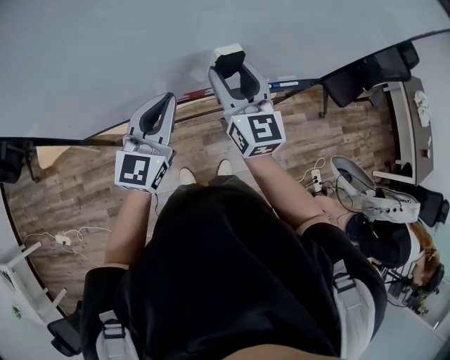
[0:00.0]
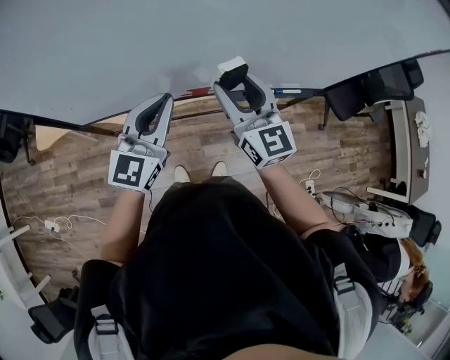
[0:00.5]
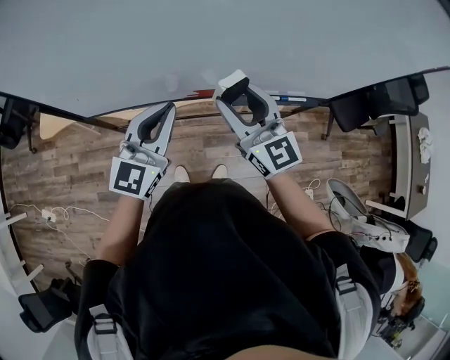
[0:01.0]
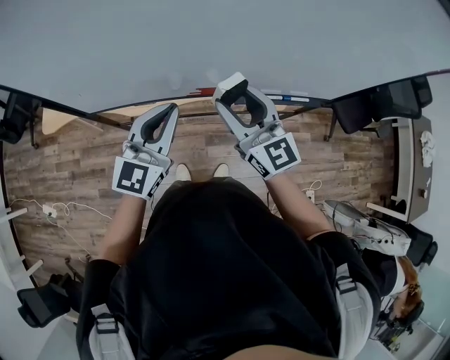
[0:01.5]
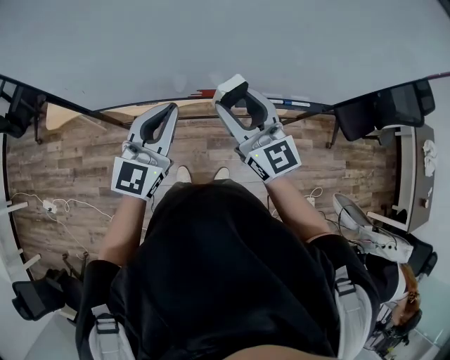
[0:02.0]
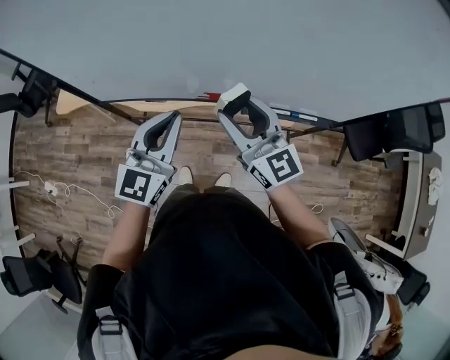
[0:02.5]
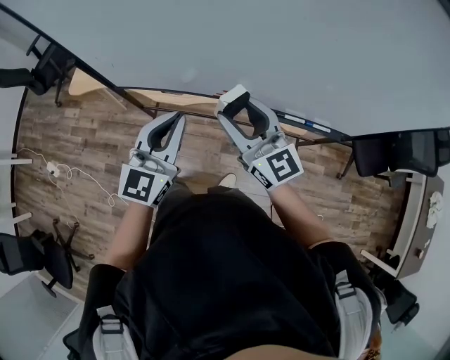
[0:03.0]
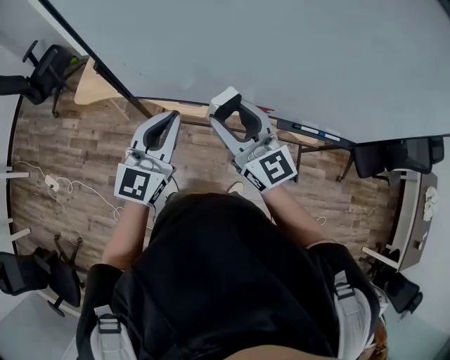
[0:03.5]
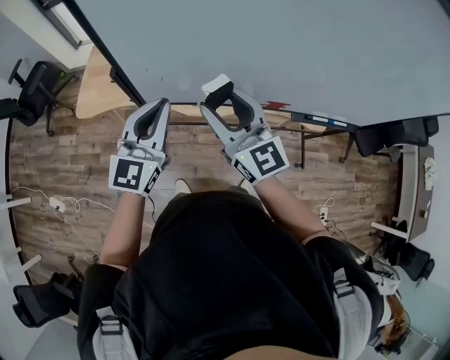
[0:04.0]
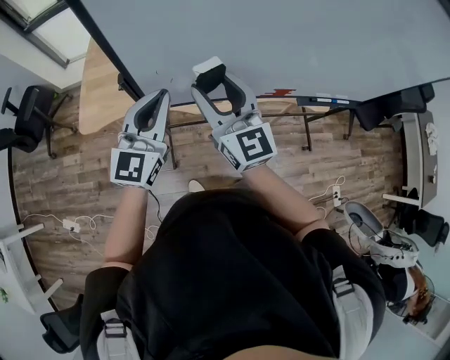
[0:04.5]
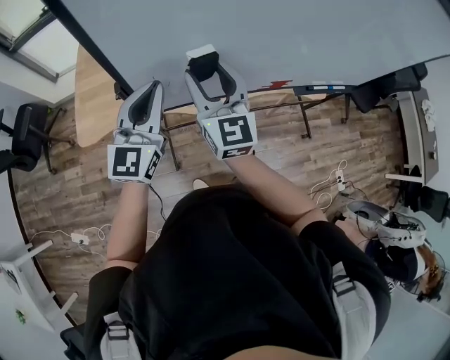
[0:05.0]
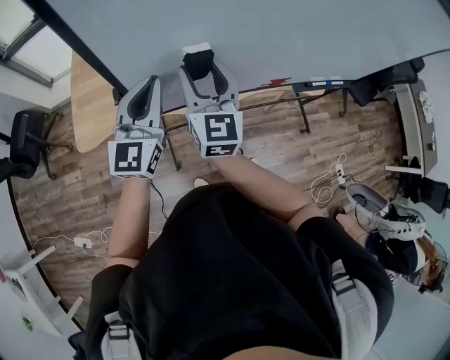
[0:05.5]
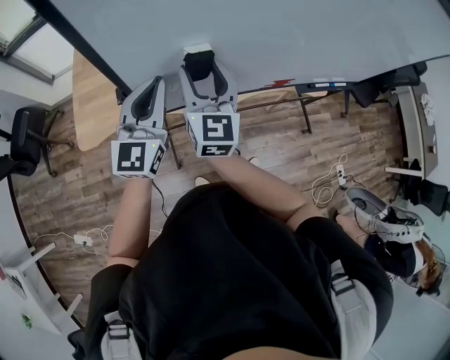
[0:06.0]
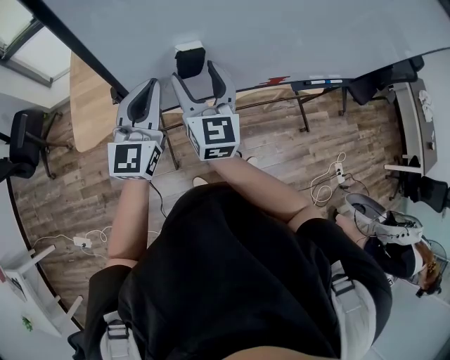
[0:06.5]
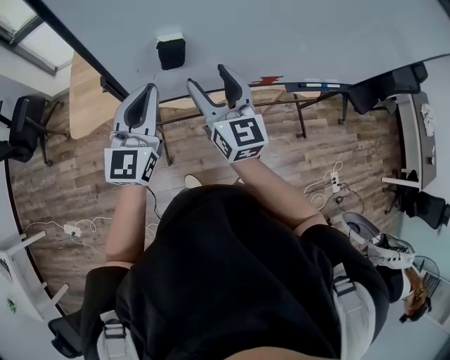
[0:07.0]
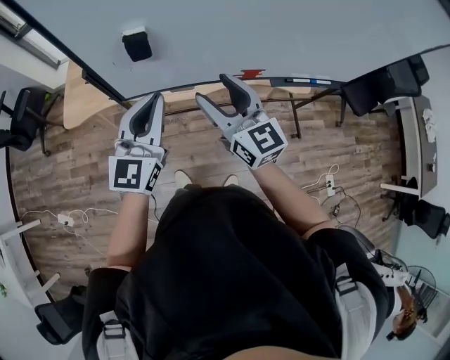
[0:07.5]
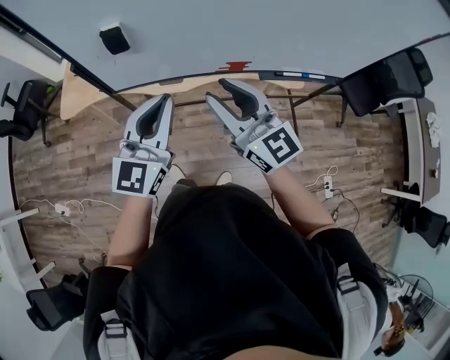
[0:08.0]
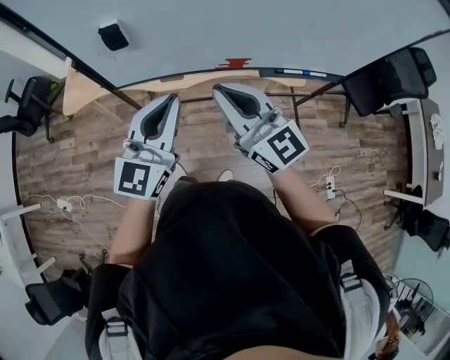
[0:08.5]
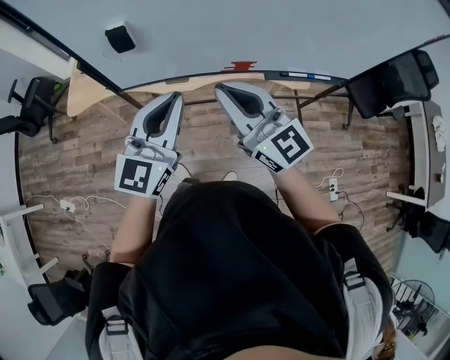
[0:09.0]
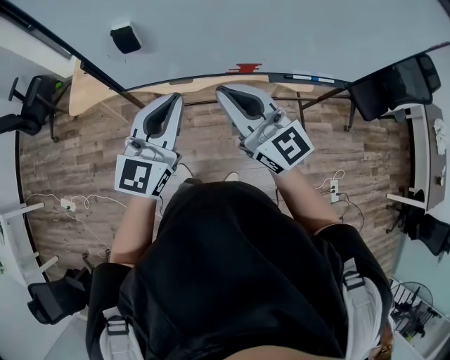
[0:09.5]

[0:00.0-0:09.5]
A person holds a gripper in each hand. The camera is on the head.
0:00.0 to 0:02.0: Both grippers travel together backward, about 5 cm. The right gripper turns by approximately 30 degrees.
0:02.0 to 0:04.0: The grippers both shift to the left by roughly 30 cm.
0:04.0 to 0:05.5: Both grippers move forward and to the left, about 10 cm. The right gripper changes its angle by roughly 40 degrees.
0:05.5 to 0:07.5: Both grippers move to the right and backward, about 20 cm. The right gripper turns by some 30 degrees.
0:07.5 to 0:09.5: The left gripper is displaced to the right and backward by roughly 10 cm. The right gripper is displaced backward and to the right by about 10 cm, and closes.

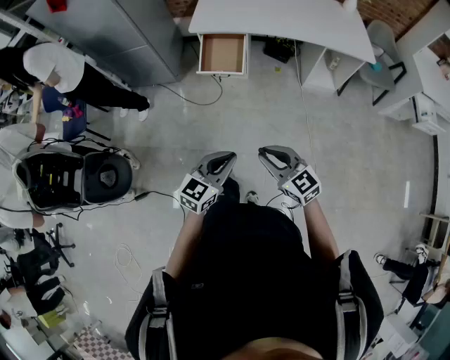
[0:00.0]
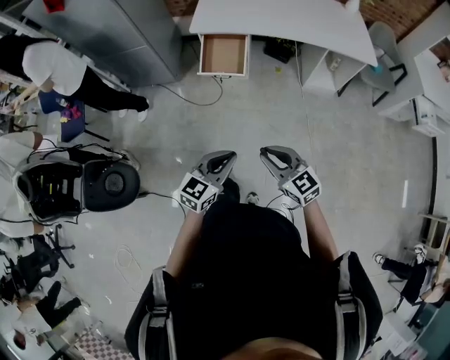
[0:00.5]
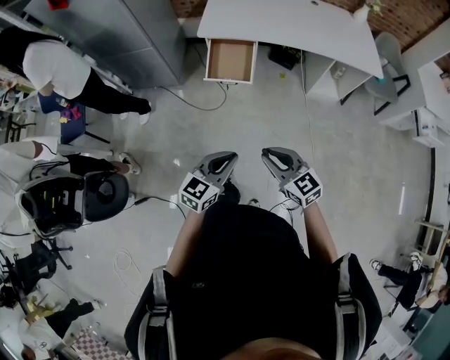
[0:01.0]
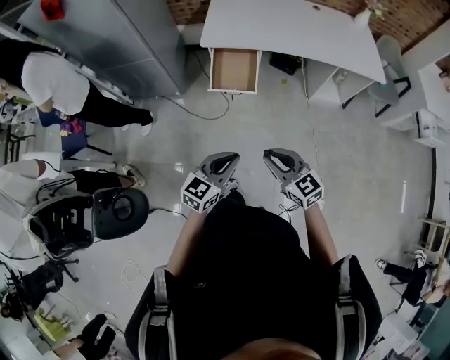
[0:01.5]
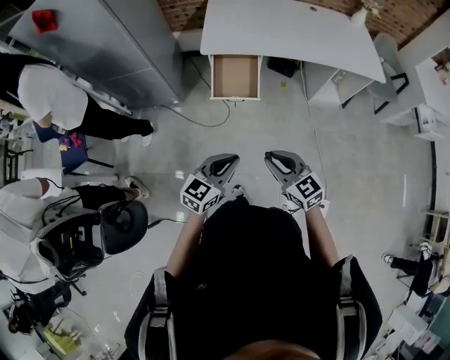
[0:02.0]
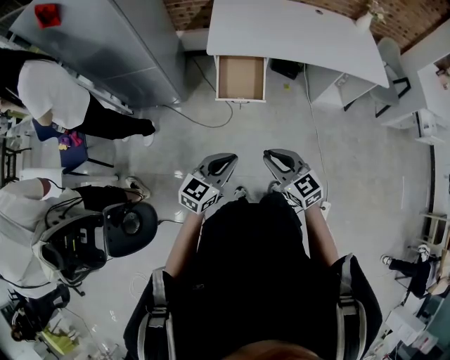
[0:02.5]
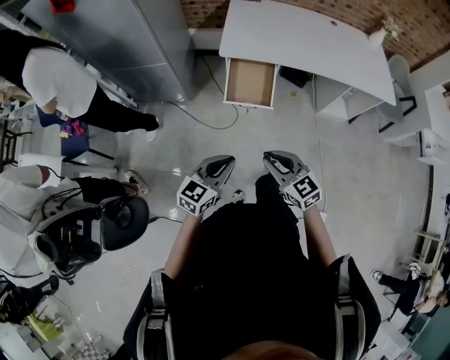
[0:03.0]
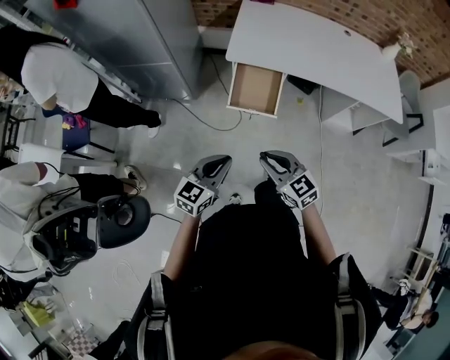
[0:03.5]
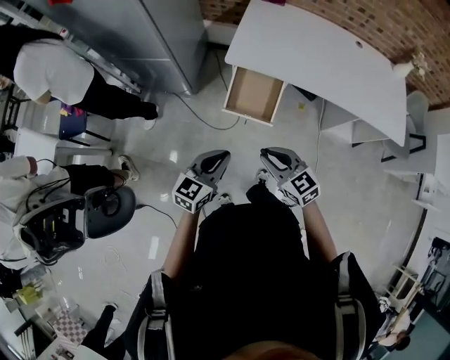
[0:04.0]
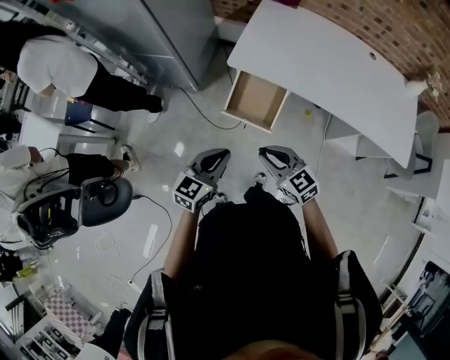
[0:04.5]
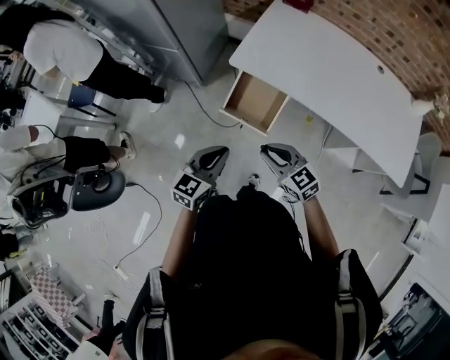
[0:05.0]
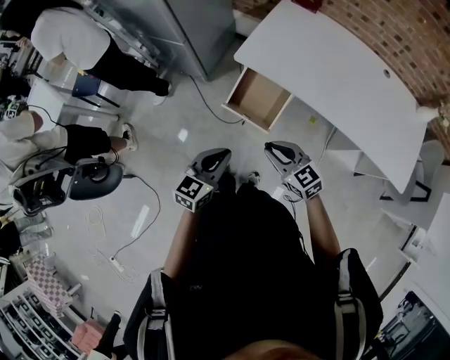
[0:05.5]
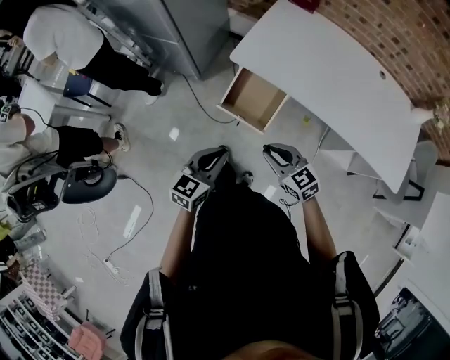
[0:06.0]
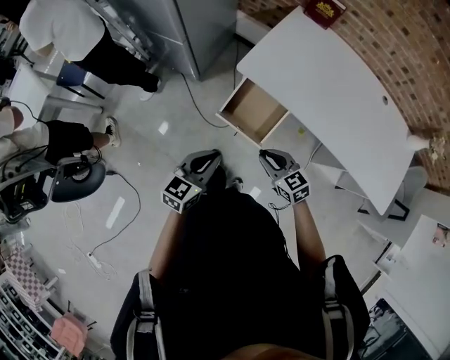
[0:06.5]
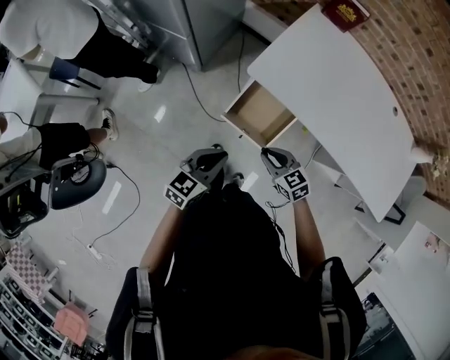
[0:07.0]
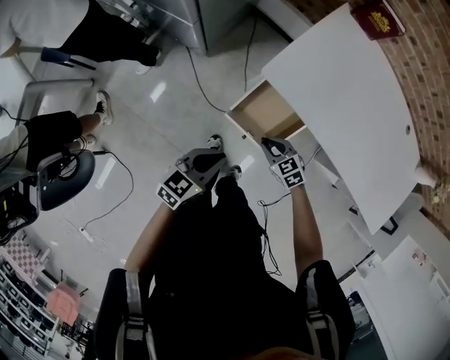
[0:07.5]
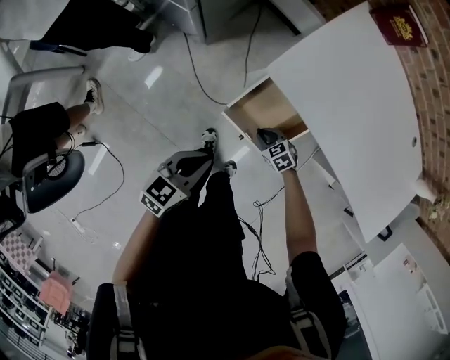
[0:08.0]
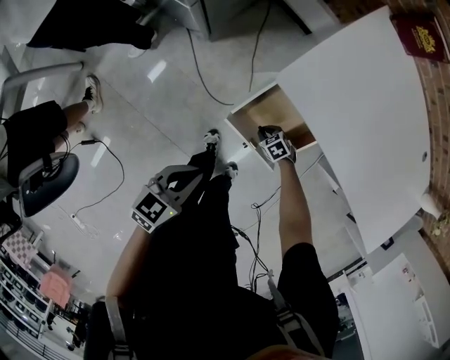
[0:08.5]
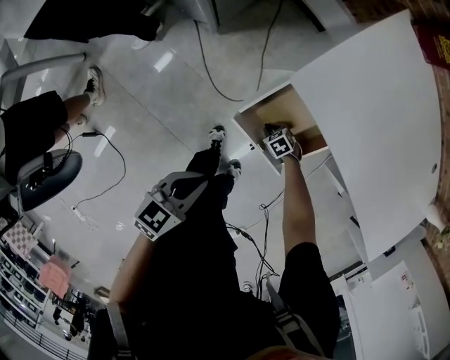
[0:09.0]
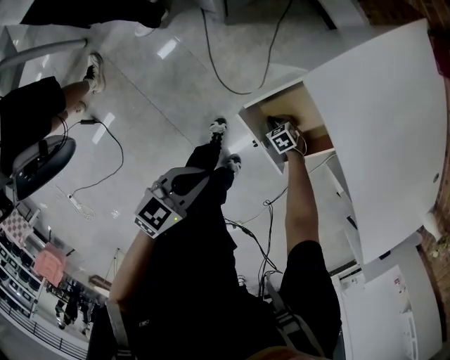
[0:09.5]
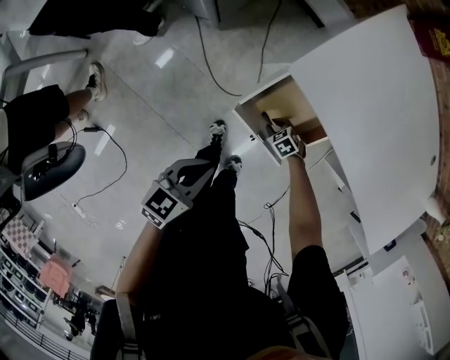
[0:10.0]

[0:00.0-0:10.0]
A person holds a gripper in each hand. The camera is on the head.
0:00.0 to 0:02.0: Both grippers travel together forward and to the left, roughly 20 cm.
0:02.0 to 0:04.0: Both grippers move forward, roughly 15 cm.
0:04.0 to 0:06.0: The left gripper is displaced to the right by some 10 cm. The right gripper heads to the right and forward, covering roughly 15 cm.
0:06.0 to 0:08.0: The left gripper moves forward, downward and to the left, some 25 cm. The right gripper is displaced downward and forward by about 40 cm, and points its fingers about 30 degrees further downward.
0:08.0 to 0:10.0: The right gripper goes about 15 cm downward; the left gripper shifts some 5 cm downward.

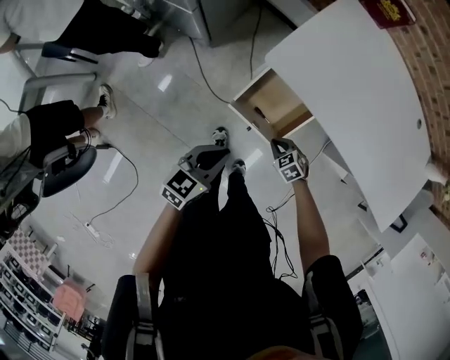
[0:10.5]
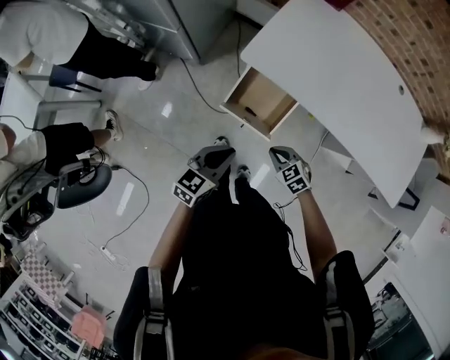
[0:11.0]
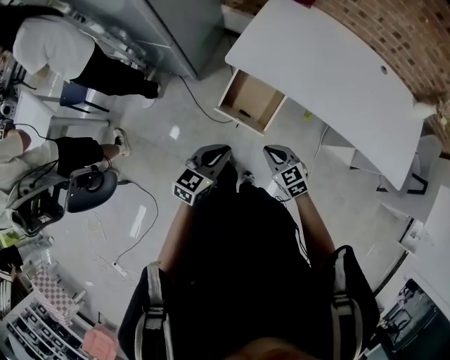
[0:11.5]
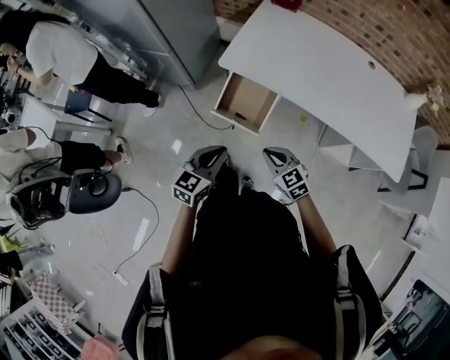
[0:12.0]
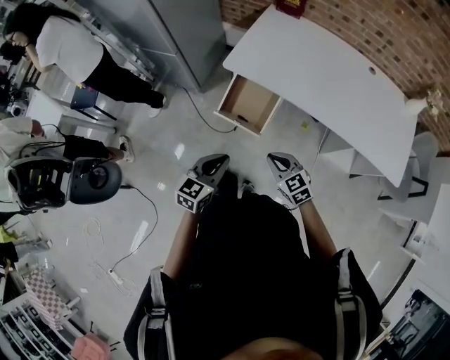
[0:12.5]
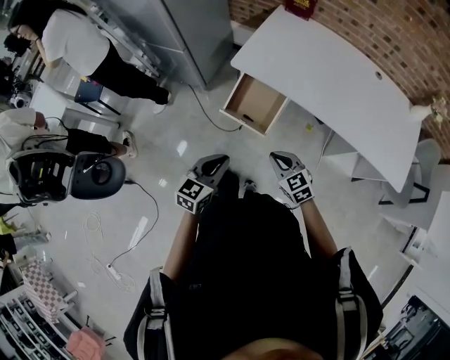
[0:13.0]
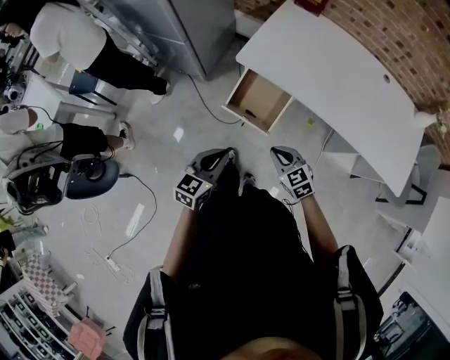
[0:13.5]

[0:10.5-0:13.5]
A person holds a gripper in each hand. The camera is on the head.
0:10.5 to 0:12.0: The left gripper shifts roughly 20 cm upward, backward and to the right; the right gripper is displaced upward and backward by roughly 30 cm, and tilts its fingers approximately 30 degrees upward.
0:12.0 to 0:13.5: There are only small adjustments of the grippers.

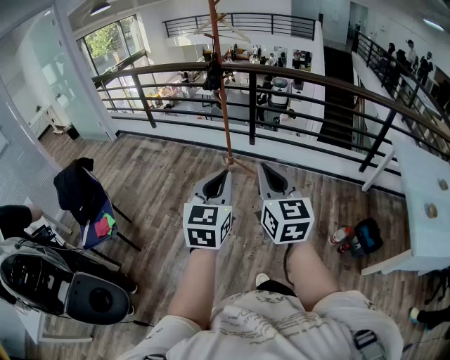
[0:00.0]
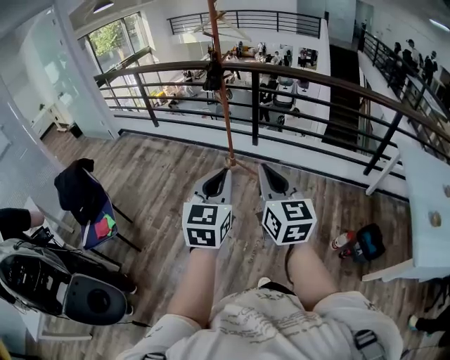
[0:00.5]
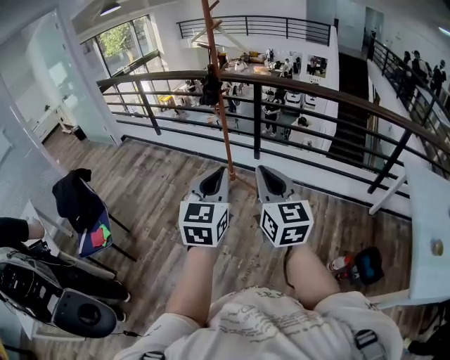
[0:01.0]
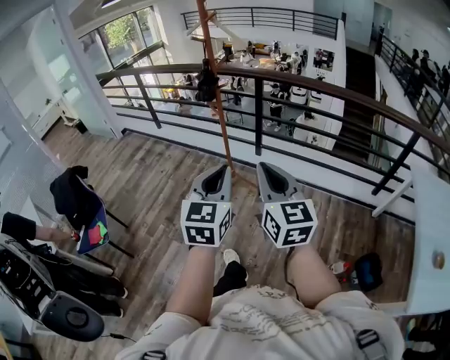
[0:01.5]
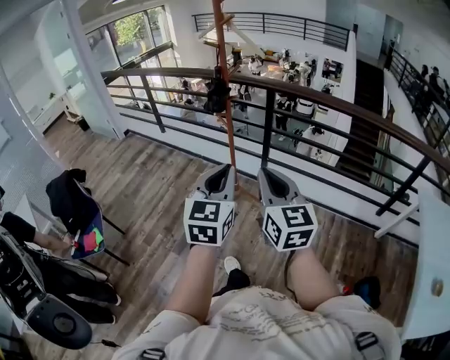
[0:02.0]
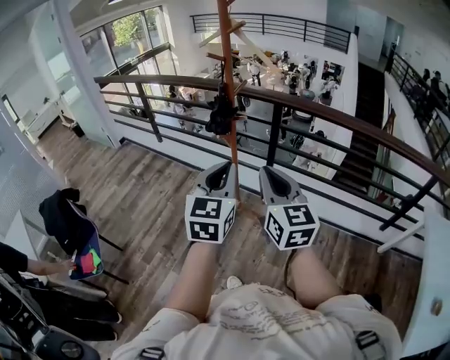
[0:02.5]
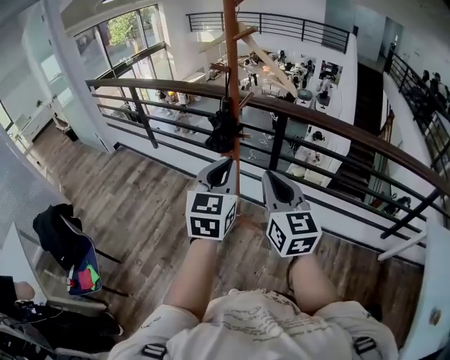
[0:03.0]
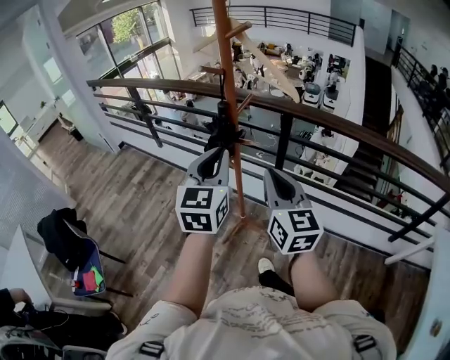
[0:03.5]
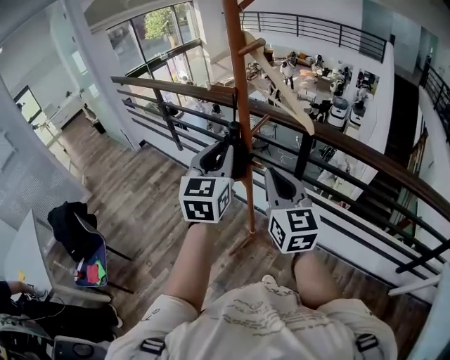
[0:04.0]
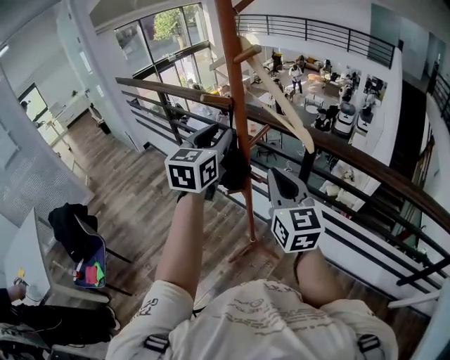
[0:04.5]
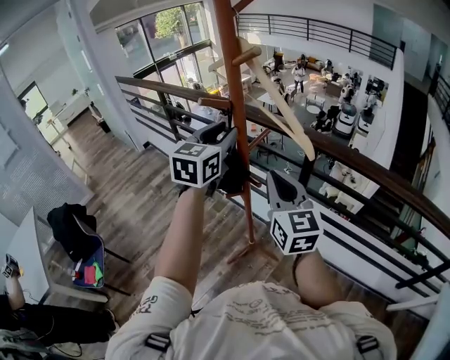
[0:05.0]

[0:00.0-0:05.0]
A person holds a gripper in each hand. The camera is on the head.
0:00.0 to 0:02.5: The pair of grippers is taken forward, about 50 cm.
0:02.5 to 0:05.0: The two grippers go about 40 cm forward. The left gripper opens up.
